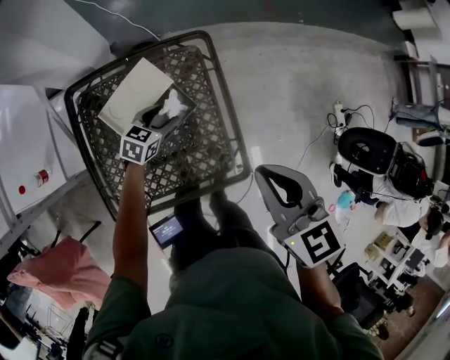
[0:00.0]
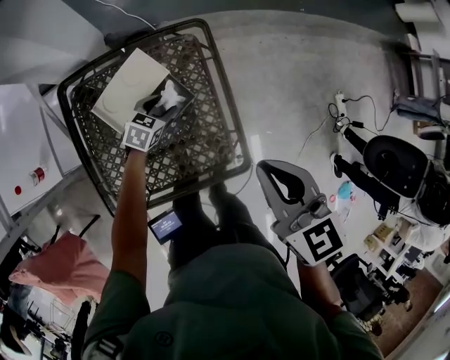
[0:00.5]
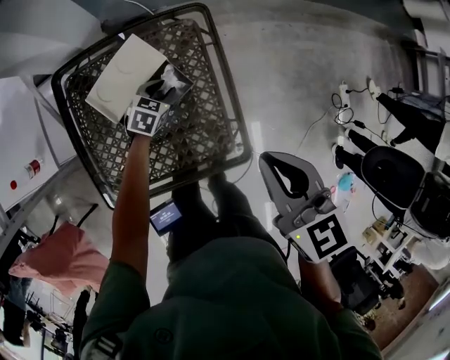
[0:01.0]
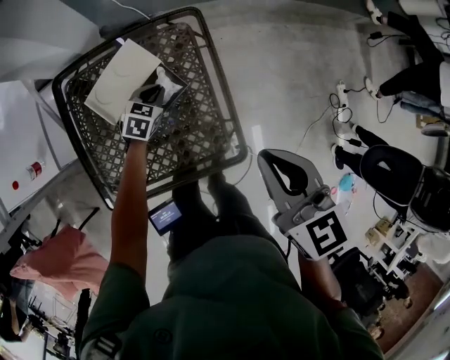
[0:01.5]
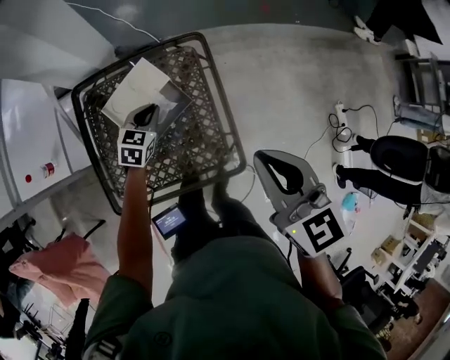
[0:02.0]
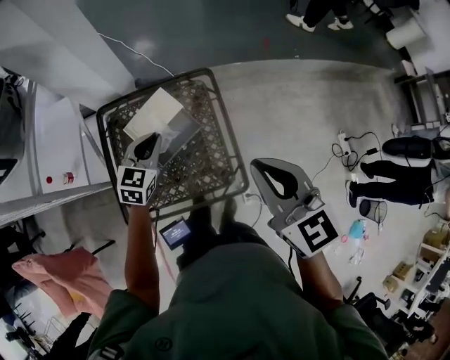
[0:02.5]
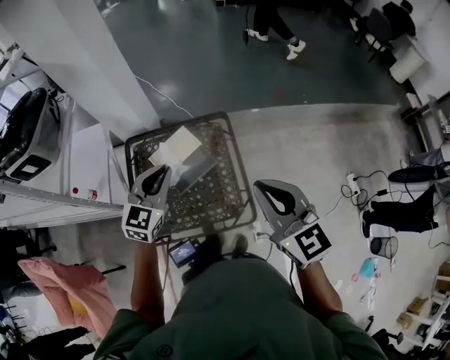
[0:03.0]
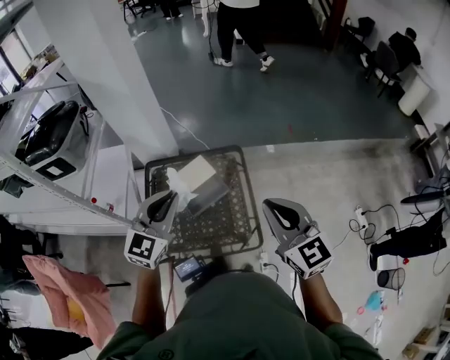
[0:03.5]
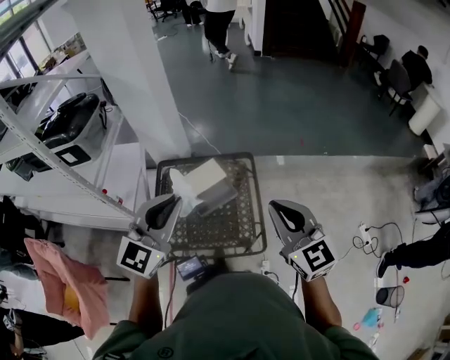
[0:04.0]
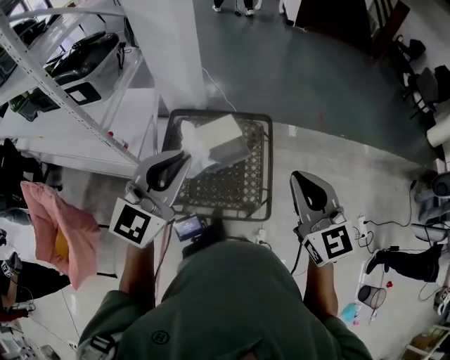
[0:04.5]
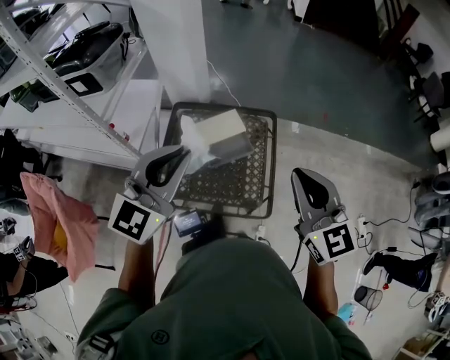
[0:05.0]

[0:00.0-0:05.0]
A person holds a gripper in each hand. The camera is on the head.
0:00.0 to 0:02.5: The right gripper shifts roughly 15 cm upward and backward. Meanwhile the left gripper goes about 20 cm upward, rotates some 30 degrees, and closes its fingers.
0:02.5 to 0:05.0: The left gripper goes roughly 40 cm upward and backward, and swivels roughly 30 degrees. The right gripper goes roughly 15 cm upward and backward, and turns by about 20 degrees.

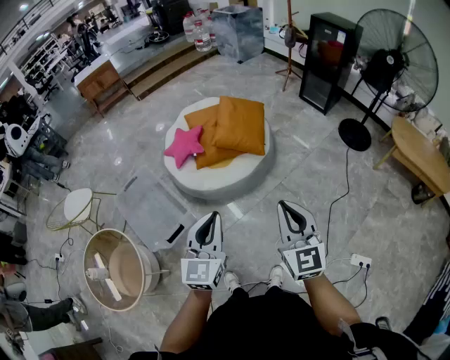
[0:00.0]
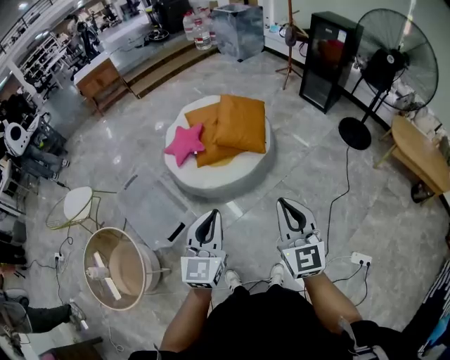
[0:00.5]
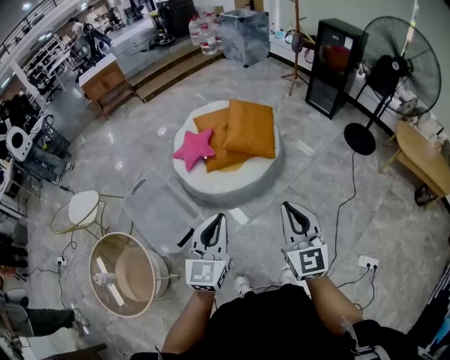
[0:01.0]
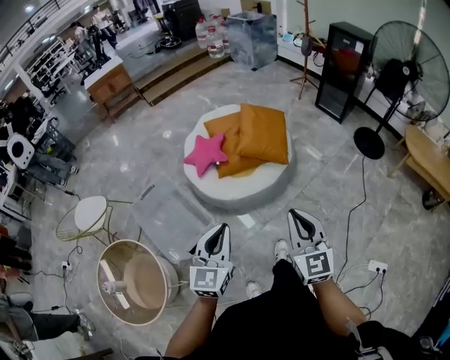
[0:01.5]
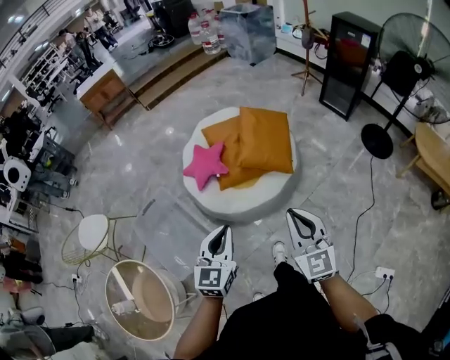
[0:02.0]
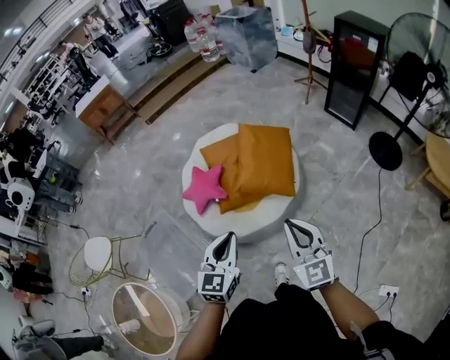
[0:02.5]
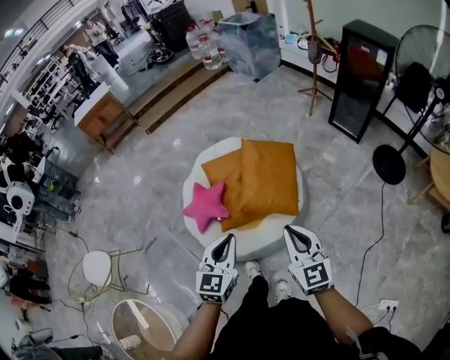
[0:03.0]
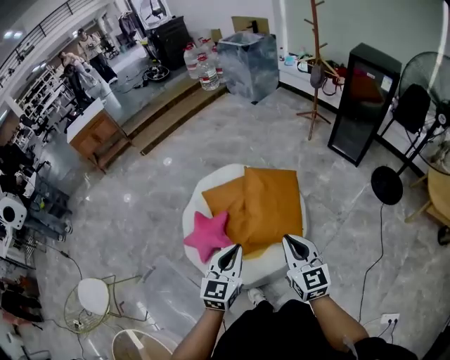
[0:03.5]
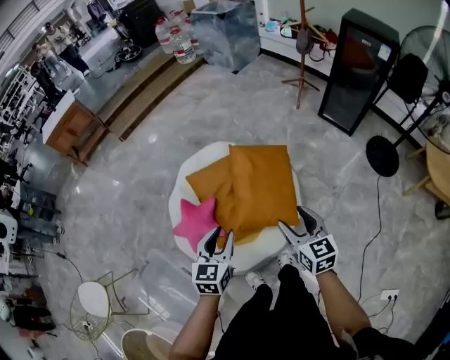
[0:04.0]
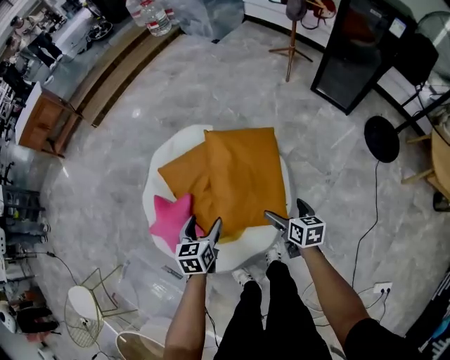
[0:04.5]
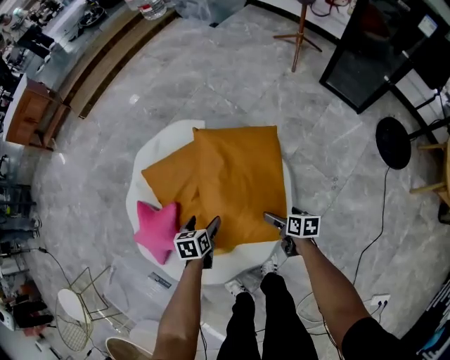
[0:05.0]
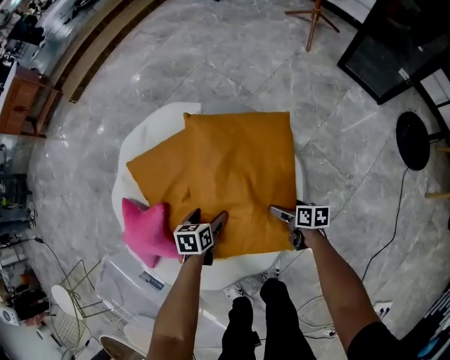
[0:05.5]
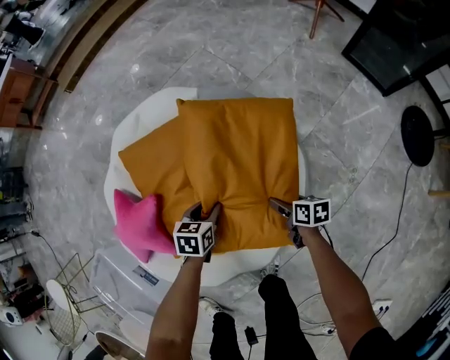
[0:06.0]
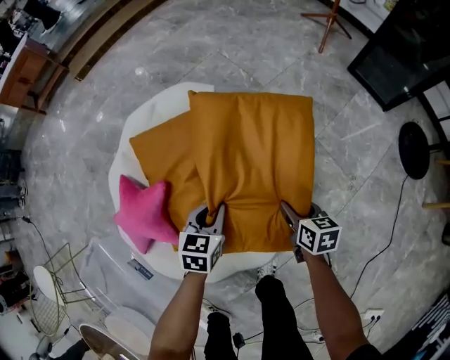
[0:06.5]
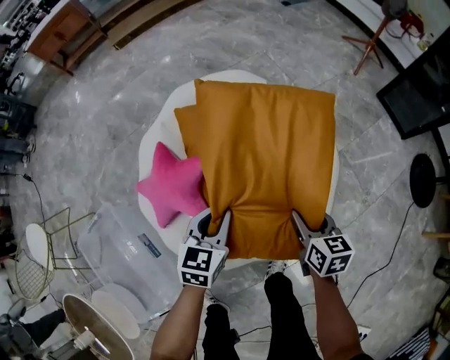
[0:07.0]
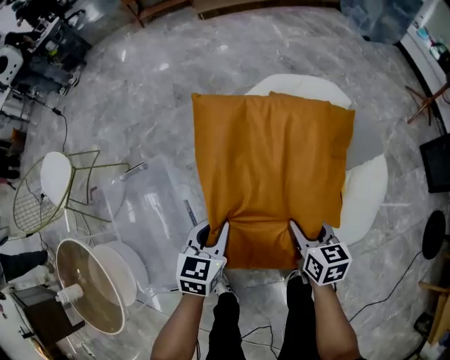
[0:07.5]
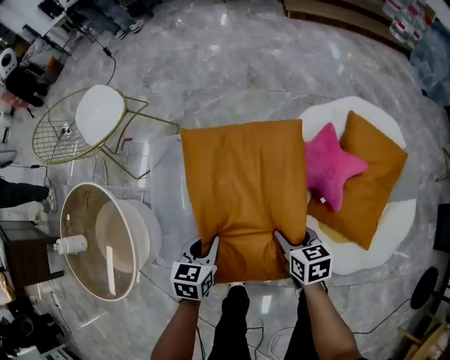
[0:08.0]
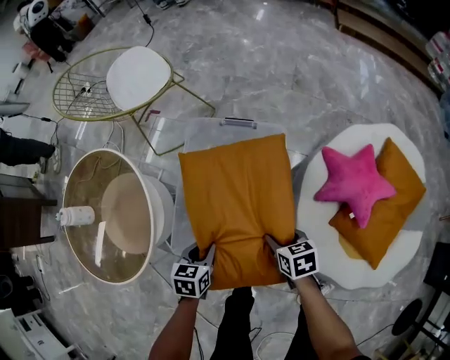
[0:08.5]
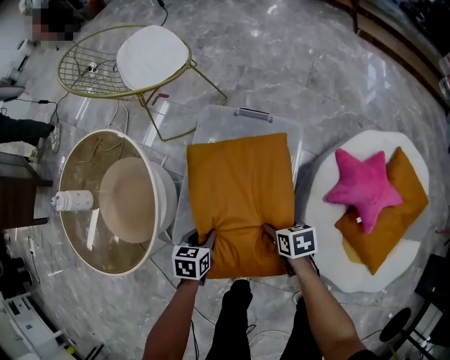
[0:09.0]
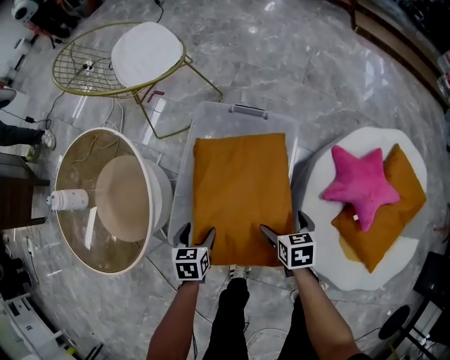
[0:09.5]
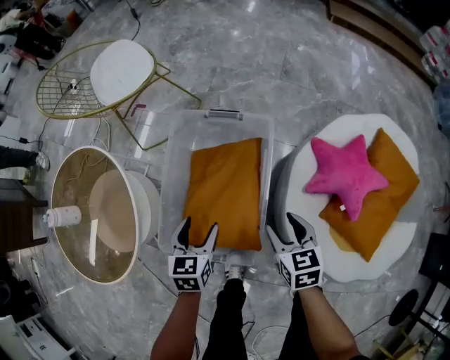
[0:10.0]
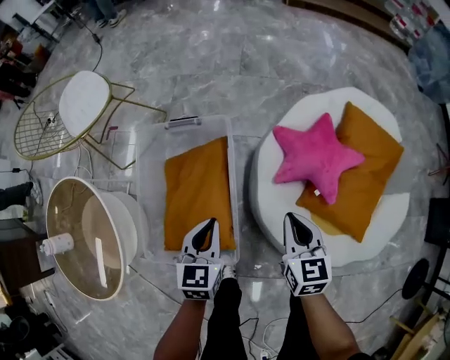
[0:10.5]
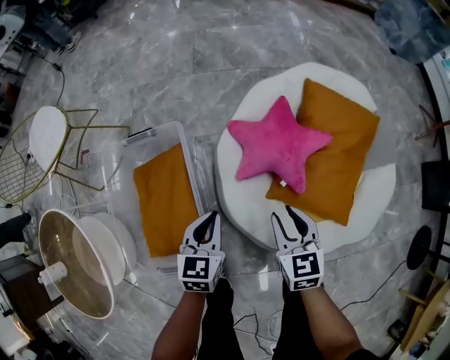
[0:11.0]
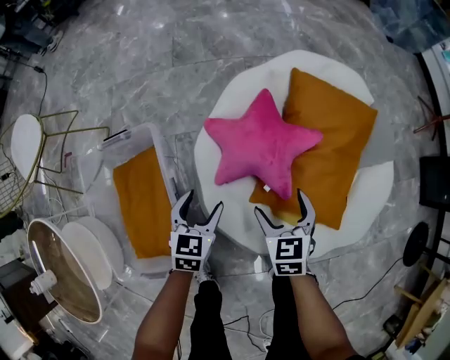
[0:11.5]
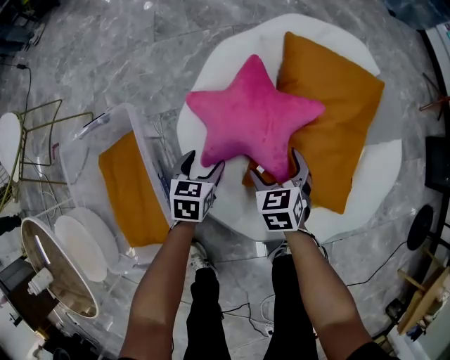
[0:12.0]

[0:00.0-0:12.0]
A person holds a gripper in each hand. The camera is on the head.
0:00.0 to 0:02.0: The grippers both shift forward and to the left by approximately 25 cm.
0:02.0 to 0:04.0: Both grippers are carried forward, roughly 50 cm. The right gripper turns by about 30 degrees, and opens its fingers.
0:04.0 to 0:06.0: The left gripper goes approximately 60 cm downward and forward, angles its fingers downward, by approximately 30 degrees, and opens, then closes again; the right gripper travels downward by approximately 60 cm, rotates roughly 50 degrees, and opens and closes again.
0:06.0 to 0:08.0: The pair of grippers is taken roughly 80 cm. The right gripper twists some 60 degrees counterclockwise, seen from behind. Meanwhile the left gripper swivels about 50 degrees.
0:08.0 to 0:10.0: The left gripper moves to the left, some 15 cm, and opens its fingers; the right gripper moves to the left and forward, roughly 15 cm, and opens and closes again.
0:10.0 to 0:12.0: The left gripper moves approximately 50 cm, changes its angle by roughly 40 degrees, and closes and opens again. The right gripper changes place by about 40 cm, turns by approximately 30 degrees, and opens.

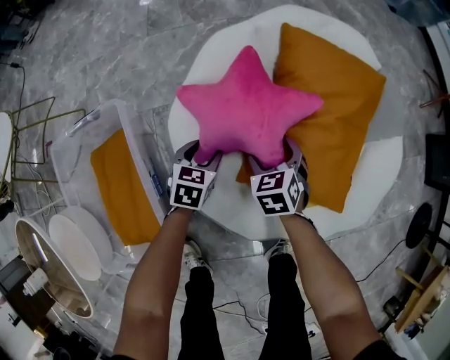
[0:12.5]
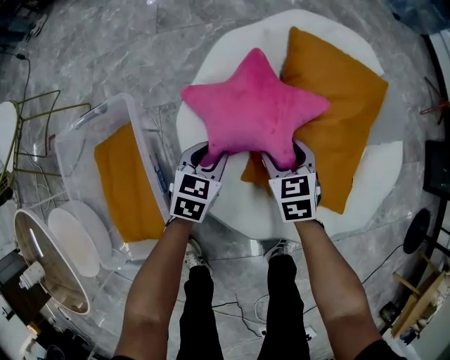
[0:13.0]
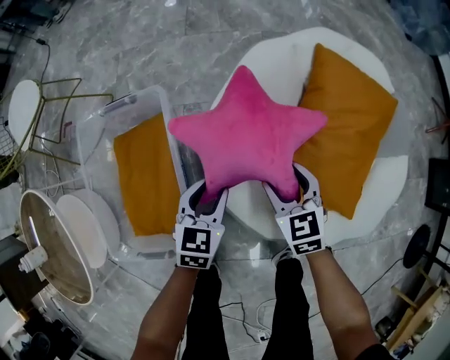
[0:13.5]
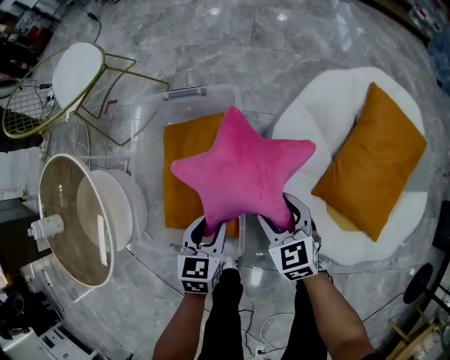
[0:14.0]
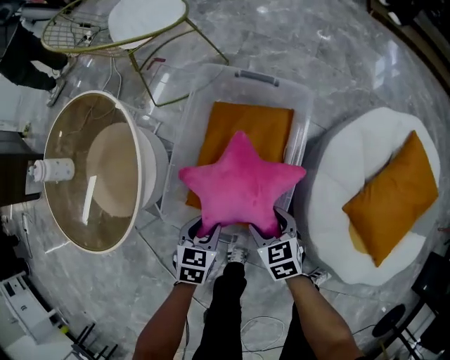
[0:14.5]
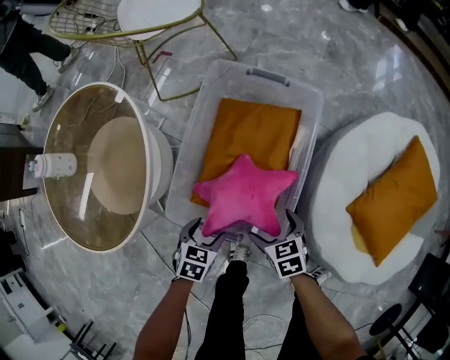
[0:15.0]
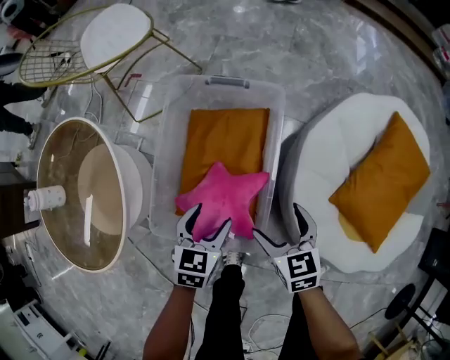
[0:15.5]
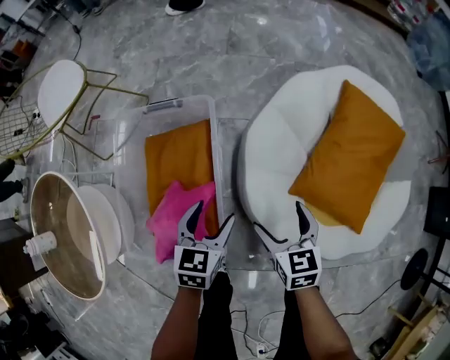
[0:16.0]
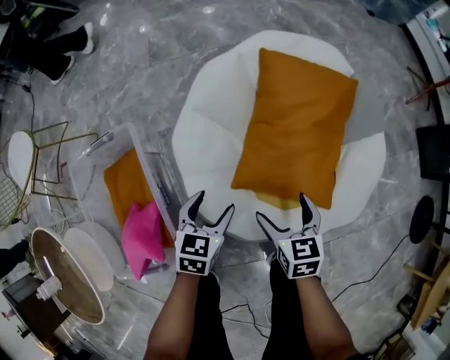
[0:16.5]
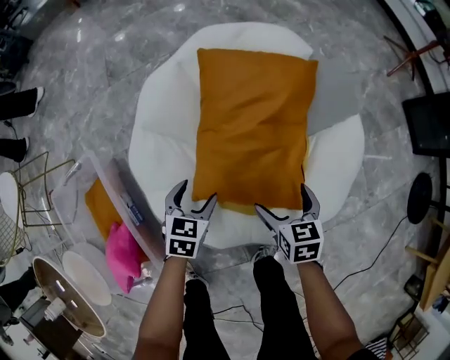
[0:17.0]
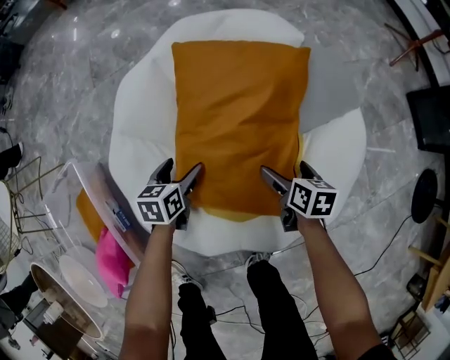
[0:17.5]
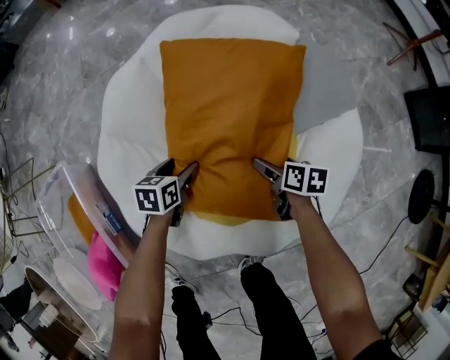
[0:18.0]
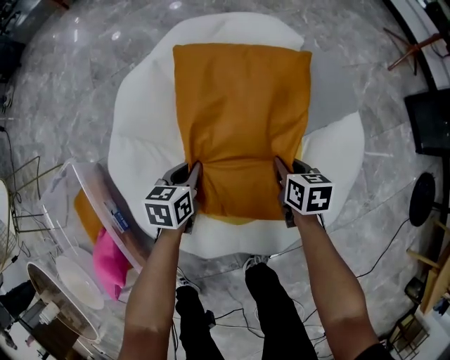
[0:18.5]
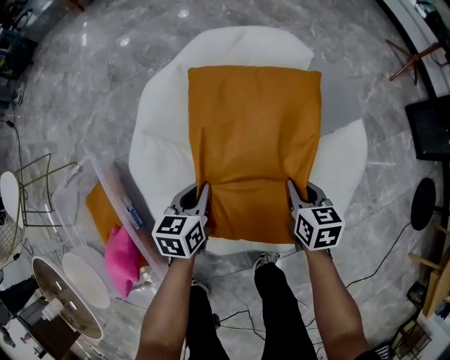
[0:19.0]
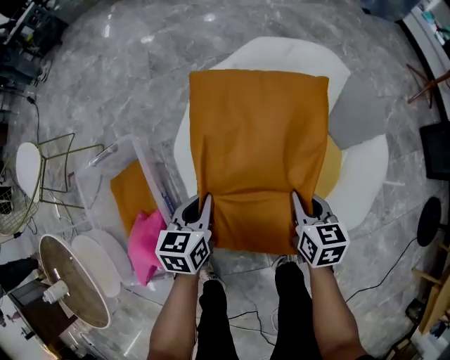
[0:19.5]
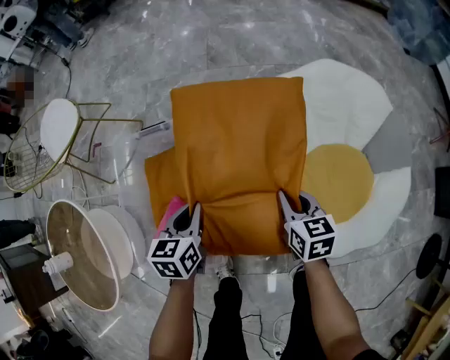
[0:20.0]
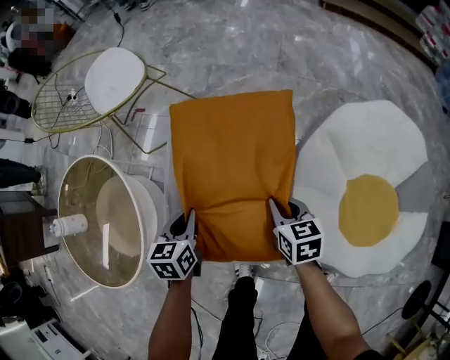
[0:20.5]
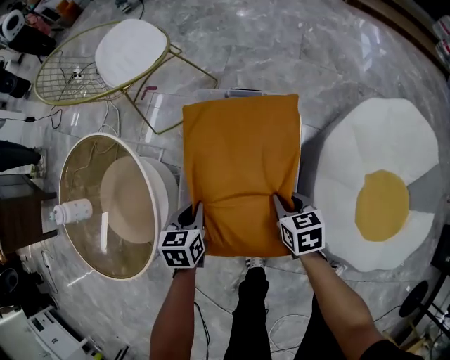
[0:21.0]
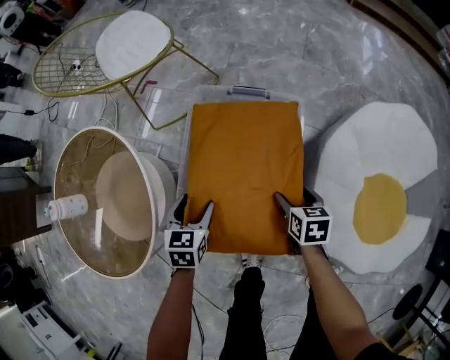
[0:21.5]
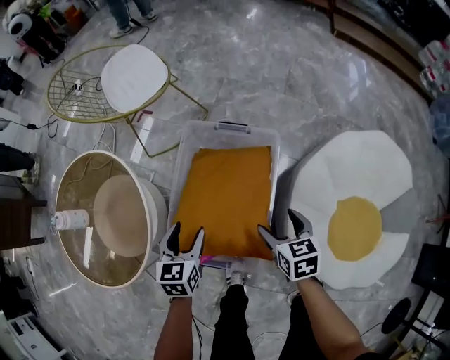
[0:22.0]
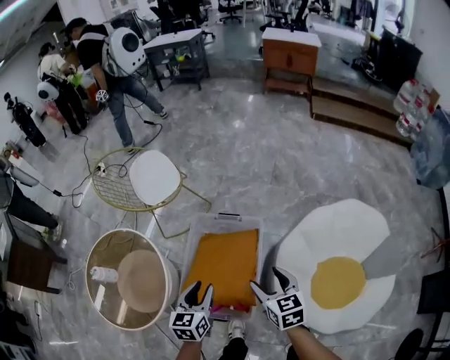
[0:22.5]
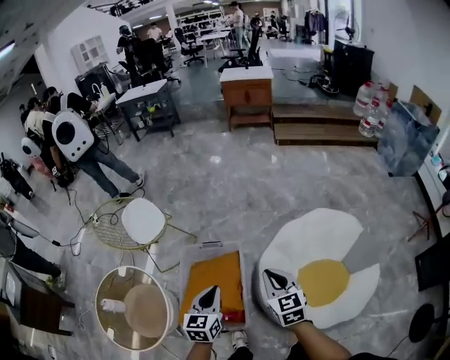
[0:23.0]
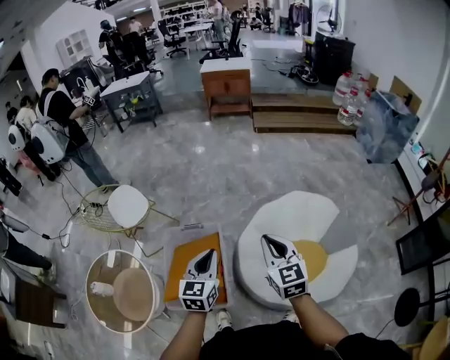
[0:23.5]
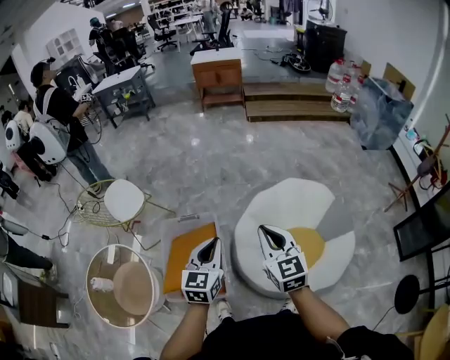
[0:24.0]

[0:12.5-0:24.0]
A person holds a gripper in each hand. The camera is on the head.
0:12.5 to 0:14.5: Both grippers are carried about 50 cm. The left gripper changes its angle by about 40 degrees. Meanwhile the right gripper changes its angle by approximately 40 degrees.
0:14.5 to 0:16.5: The two grippers travel together, some 50 cm. The right gripper swivels some 50 degrees, and opens up. Meanwhile the left gripper changes its angle by some 40 degrees, and opens its fingers.
0:16.5 to 0:18.5: The right gripper is displaced to the right, downward and forward by some 35 cm, turns by some 20 degrees, and closes; the left gripper heads to the right, forward and downward, covering about 25 cm, and closes.
0:18.5 to 0:20.0: The pair of grippers is taken some 50 cm. The left gripper turns by about 30 degrees; the right gripper turns by about 30 degrees.
0:20.0 to 0:22.0: Both grippers move to the left, roughly 30 cm. The right gripper rotates some 30 degrees, and opens its fingers, while the left gripper rotates approximately 20 degrees, and opens its fingers.
0:22.0 to 0:24.0: Both grippers travel together upward, approximately 50 cm. The right gripper tilts its fingers approximately 40 degrees upward, and closes; the left gripper rotates some 40 degrees, and closes up.
